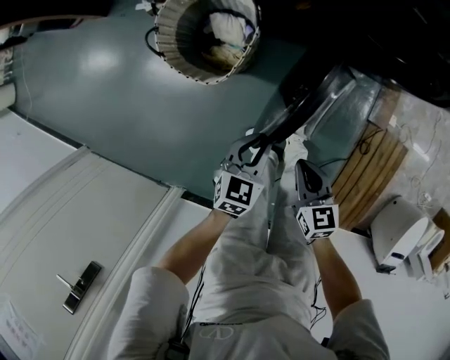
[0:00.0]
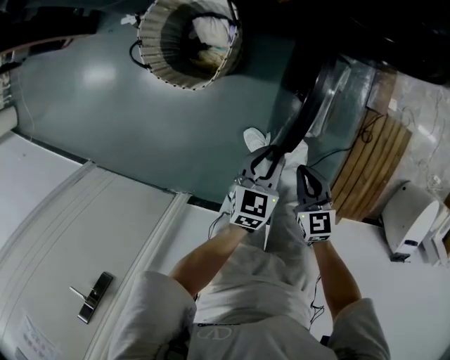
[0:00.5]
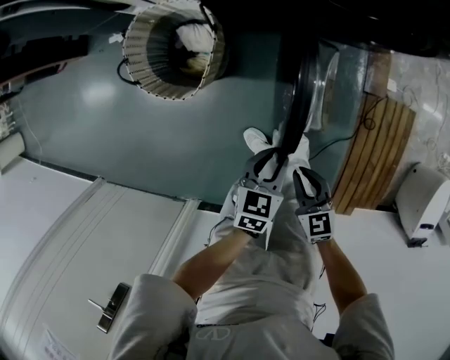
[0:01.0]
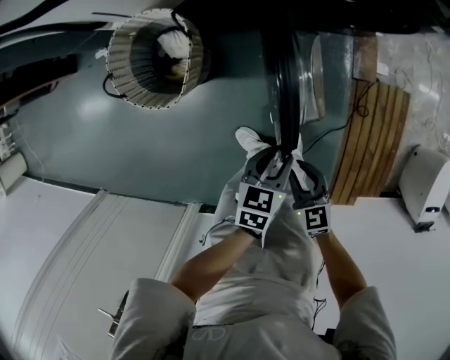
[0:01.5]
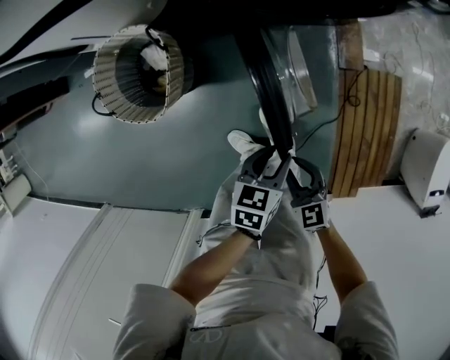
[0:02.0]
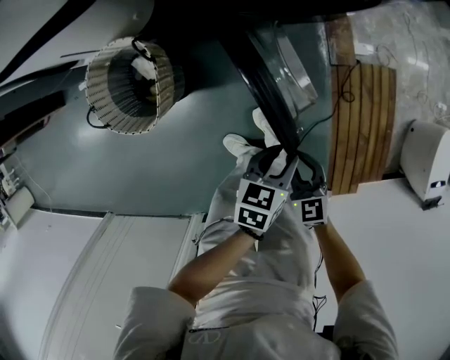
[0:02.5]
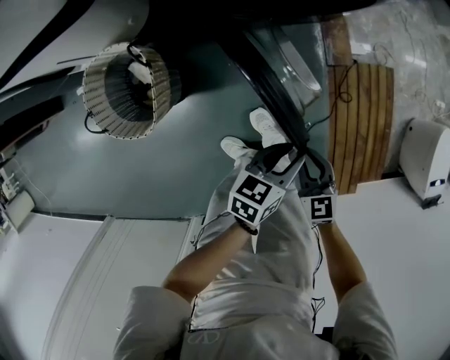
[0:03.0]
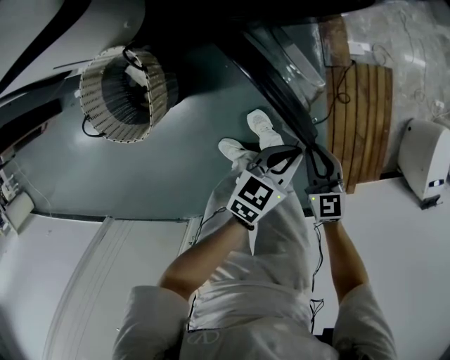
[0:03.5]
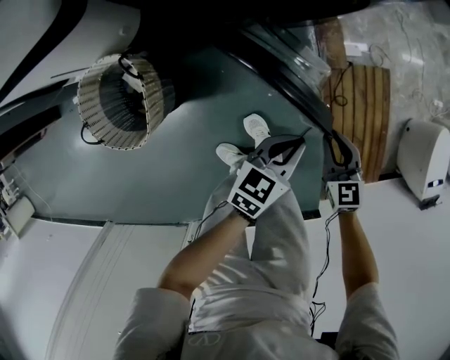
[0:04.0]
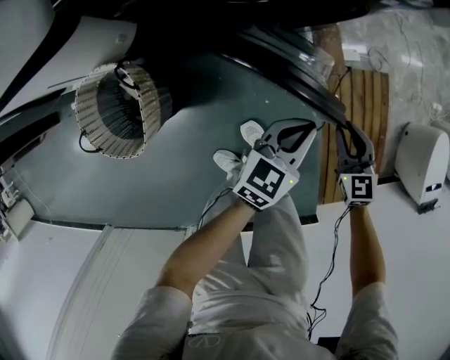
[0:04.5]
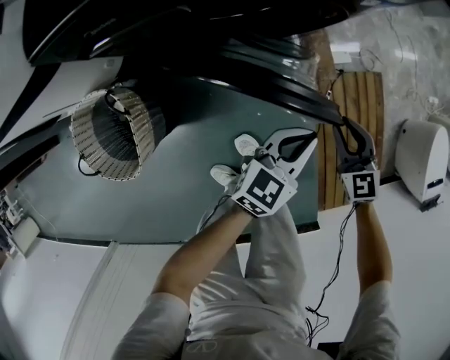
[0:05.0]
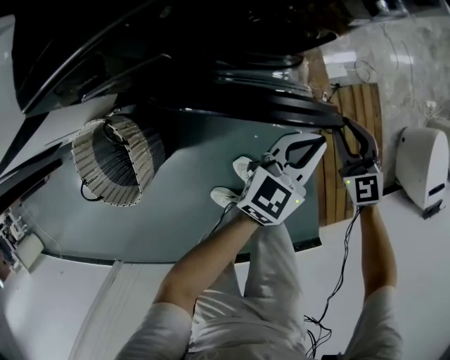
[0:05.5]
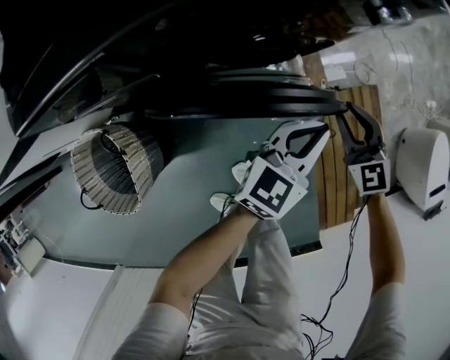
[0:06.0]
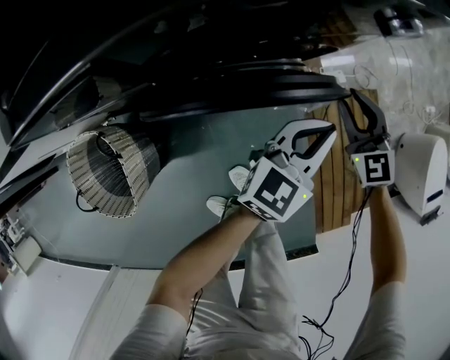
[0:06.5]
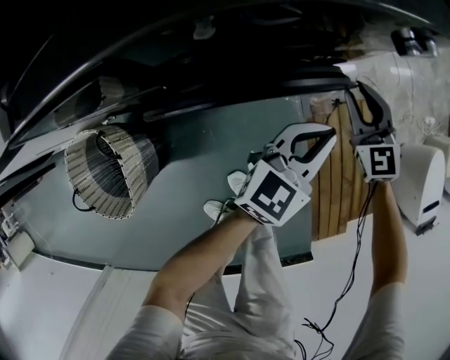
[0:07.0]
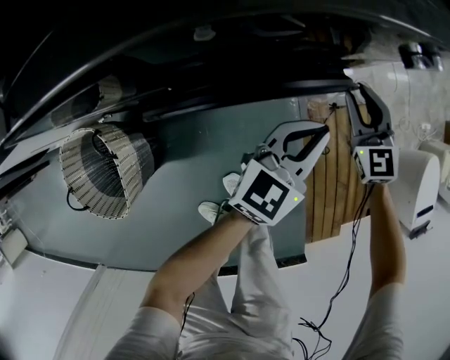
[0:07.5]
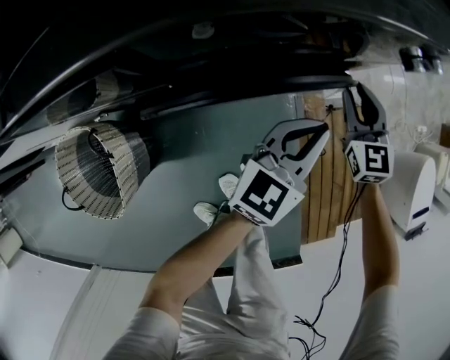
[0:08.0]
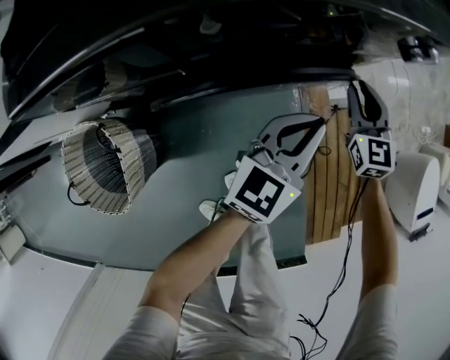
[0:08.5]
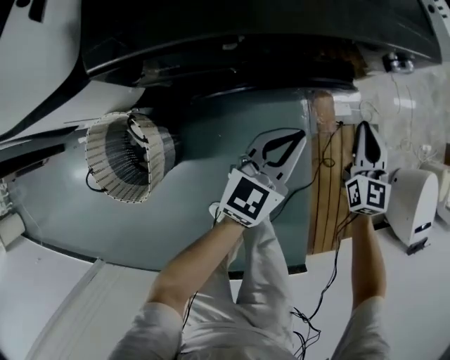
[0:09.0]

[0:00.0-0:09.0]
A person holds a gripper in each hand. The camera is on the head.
0:00.0 to 0:02.0: The right gripper travels to the right by some 10 cm, and opens up. The left gripper shifts roughly 20 cm to the right, and swivels approximately 30 degrees.
0:02.0 to 0:04.5: Both grippers move forward and to the right, about 25 cm. The right gripper swivels about 20 degrees. Meanwhile the left gripper changes its angle by about 40 degrees, and closes its fingers.
0:04.5 to 0:07.0: The two grippers go roughly 20 cm forward.
0:07.0 to 0:09.0: The right gripper moves upward and backward, roughly 10 cm, changes its angle by about 20 degrees, and closes its fingers. The left gripper travels to the left and upward by approximately 10 cm.

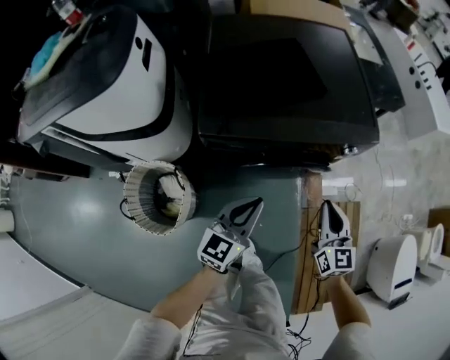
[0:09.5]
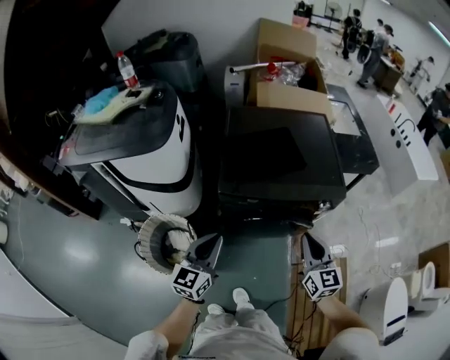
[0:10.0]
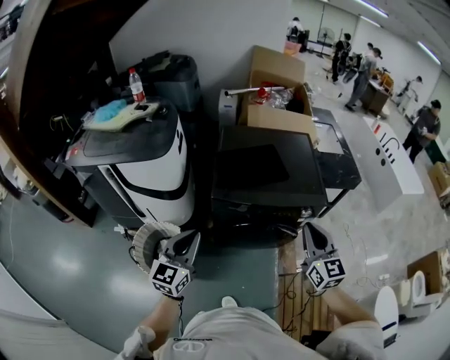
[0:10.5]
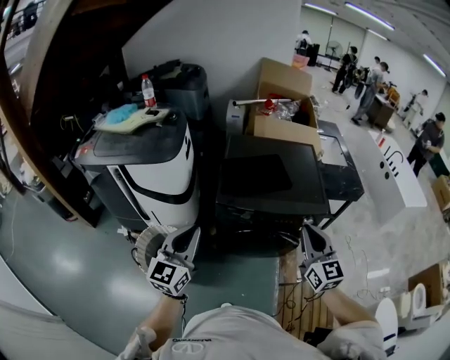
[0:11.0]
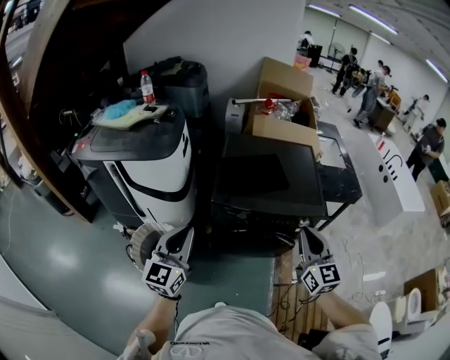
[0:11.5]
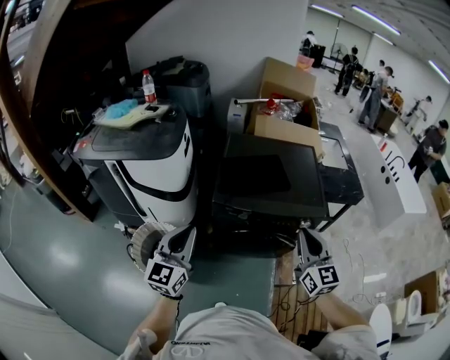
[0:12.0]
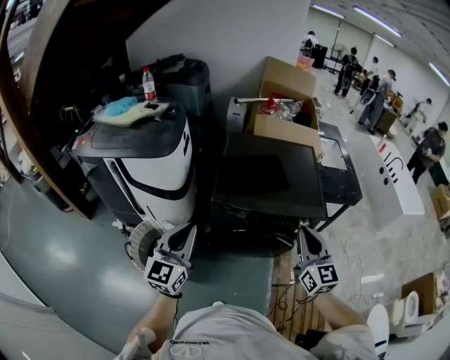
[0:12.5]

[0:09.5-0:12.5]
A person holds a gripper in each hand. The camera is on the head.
0:09.5 to 0:11.0: The left gripper is displaced upward and to the left by approximately 35 cm, and swivels roughly 30 degrees, while the right gripper travels upward by some 30 cm, and turns by about 20 degrees.
0:11.0 to 0:12.5: There are only small adjustments of the grippers.

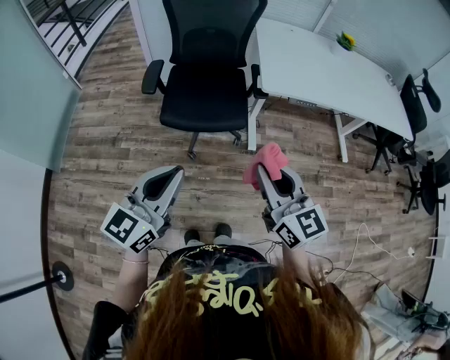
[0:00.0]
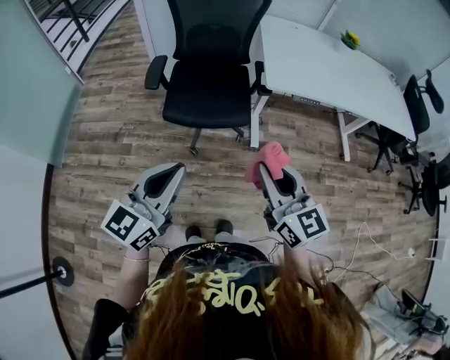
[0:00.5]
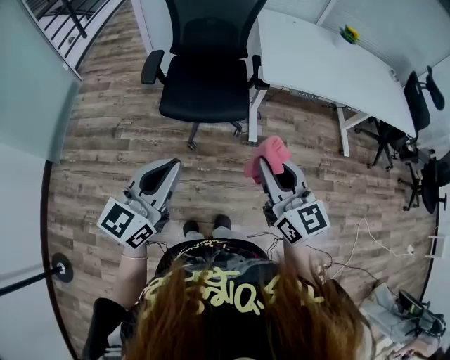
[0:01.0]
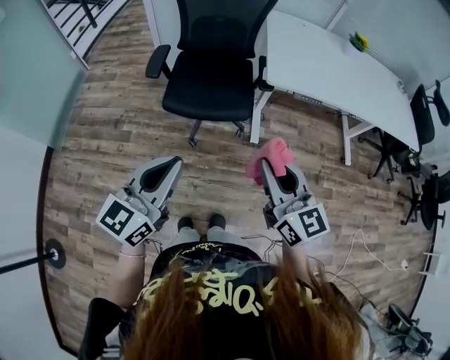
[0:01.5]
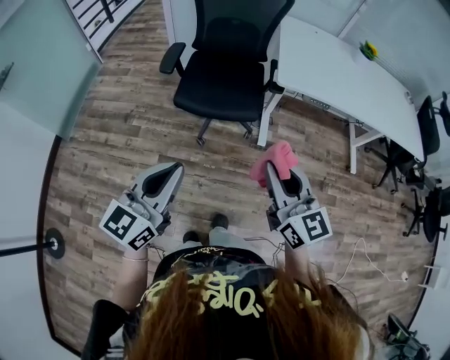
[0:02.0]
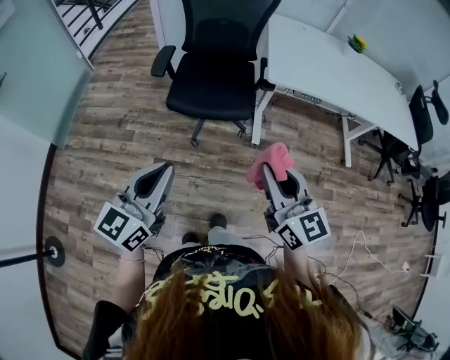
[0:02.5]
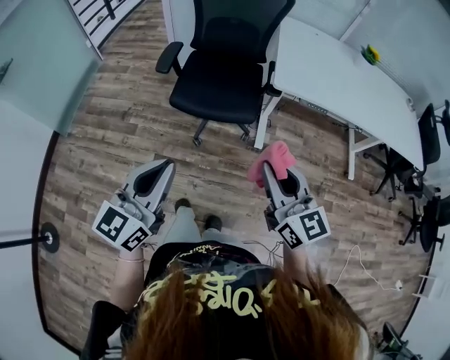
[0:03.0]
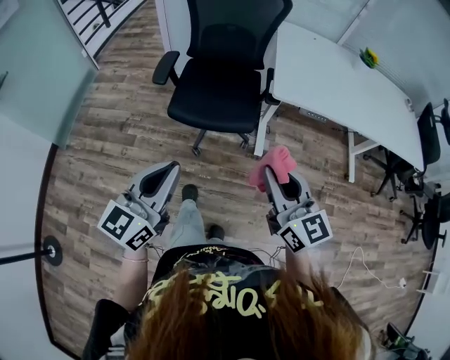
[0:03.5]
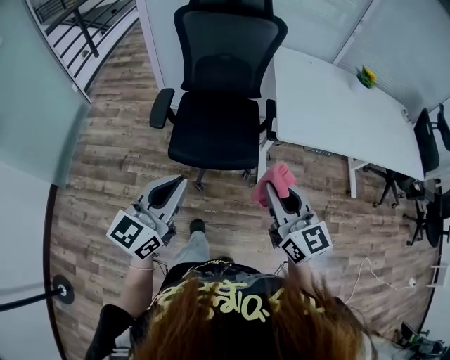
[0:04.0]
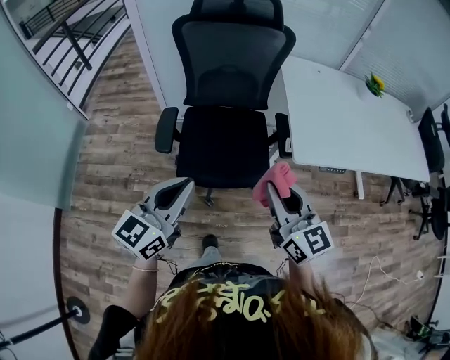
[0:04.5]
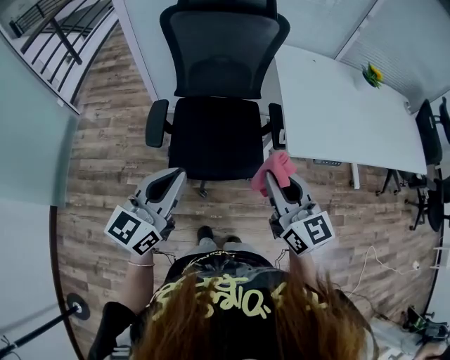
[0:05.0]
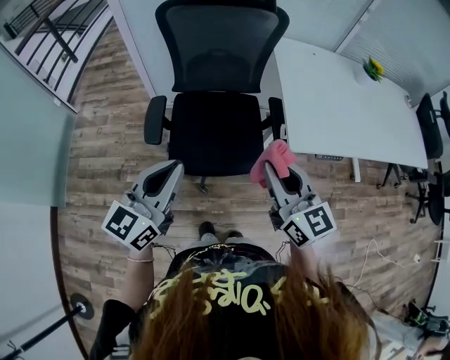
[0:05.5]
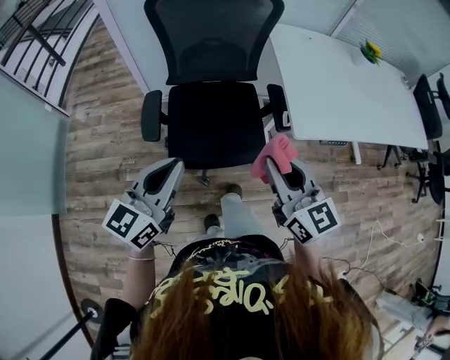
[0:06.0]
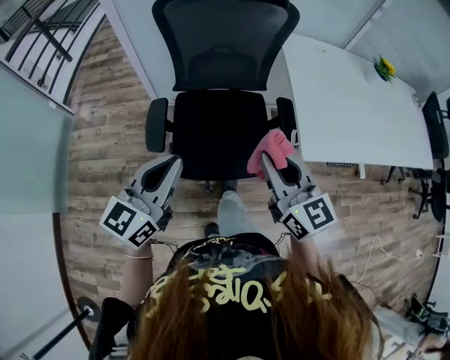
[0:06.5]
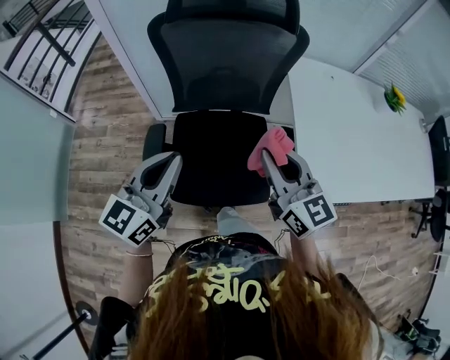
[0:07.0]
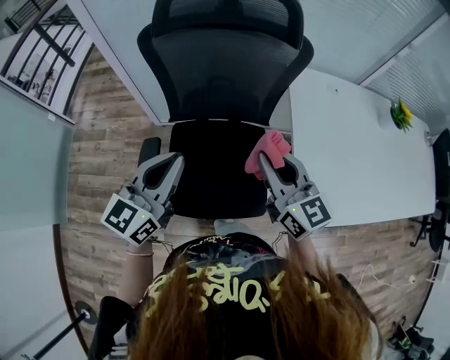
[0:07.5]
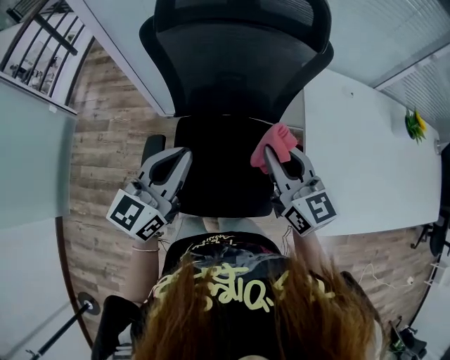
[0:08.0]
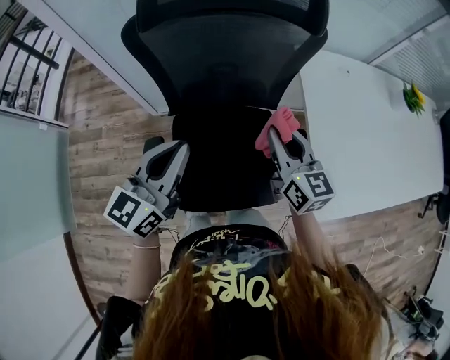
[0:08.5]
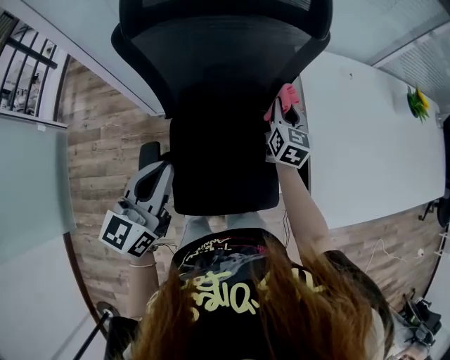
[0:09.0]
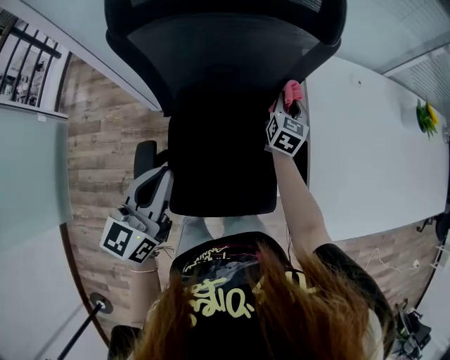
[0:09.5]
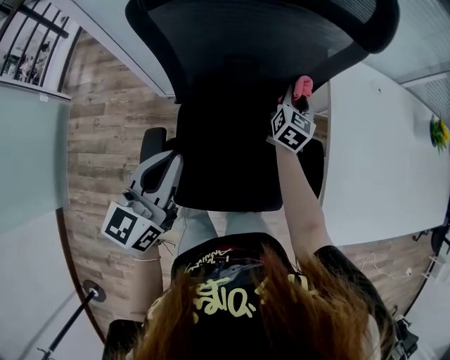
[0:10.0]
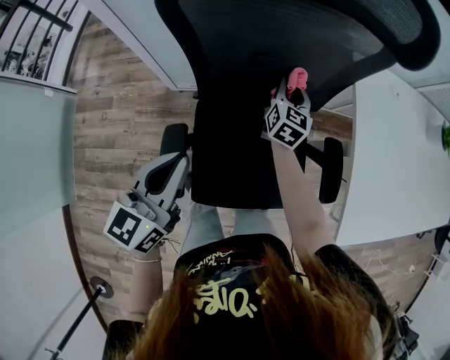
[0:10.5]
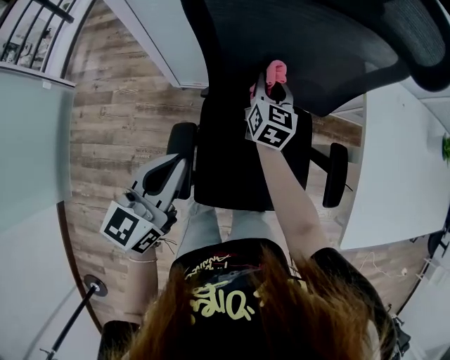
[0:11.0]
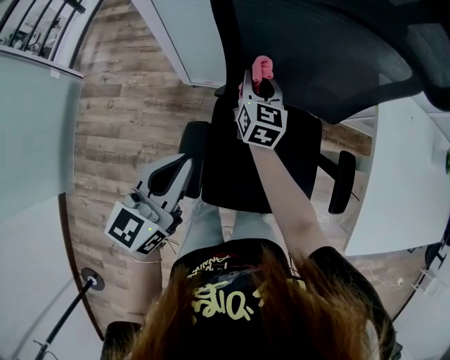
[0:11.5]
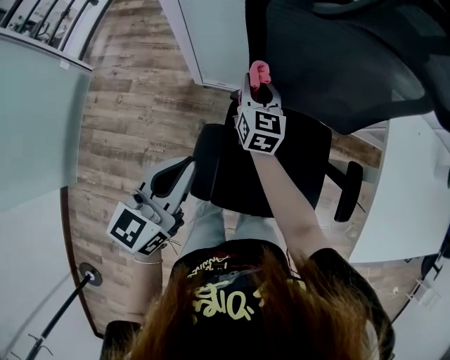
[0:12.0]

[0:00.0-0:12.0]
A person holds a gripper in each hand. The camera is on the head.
0:00.0 to 0:02.0: The left gripper ends up roughly 5 cm from where it was.
0:02.0 to 0:04.0: The two grippers go approximately 20 cm forward.
0:04.0 to 0:06.0: Both grippers move forward and to the left, roughly 15 cm.
0:06.0 to 0:08.0: The grippers both shift forward by some 30 cm.
0:08.0 to 0:10.0: The left gripper travels downward by approximately 5 cm. The right gripper goes about 30 cm forward and downward, and swivels approximately 40 degrees.
0:10.0 to 0:12.0: The right gripper travels to the left by roughly 35 cm, and changes its angle by roughly 30 degrees; the left gripper travels to the left by roughly 15 cm.

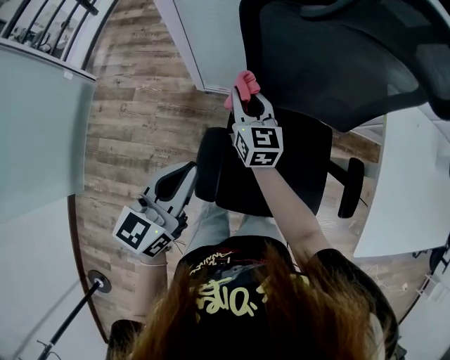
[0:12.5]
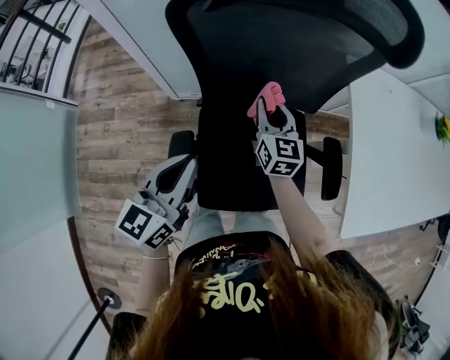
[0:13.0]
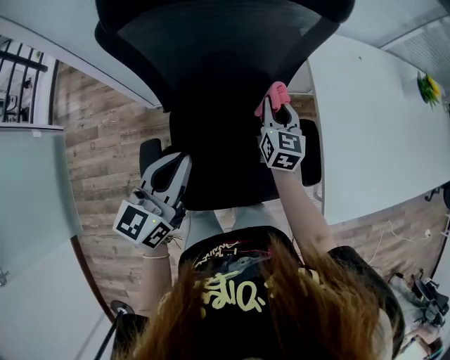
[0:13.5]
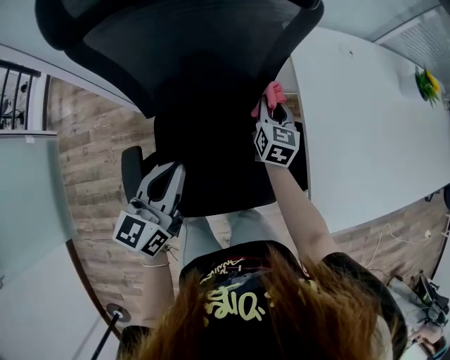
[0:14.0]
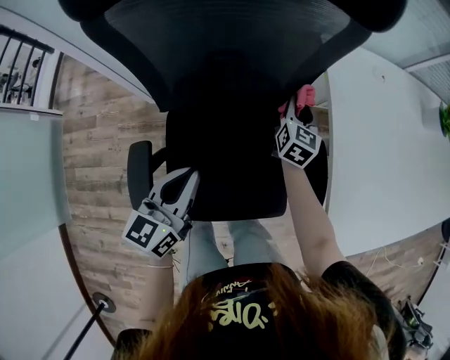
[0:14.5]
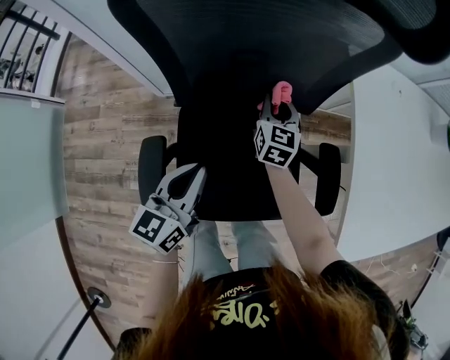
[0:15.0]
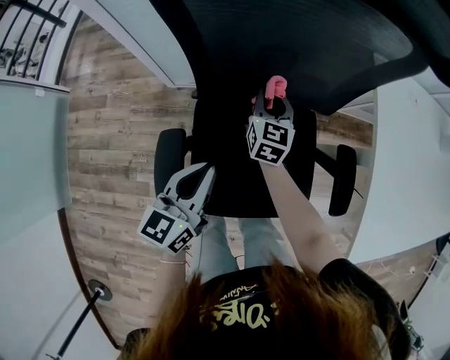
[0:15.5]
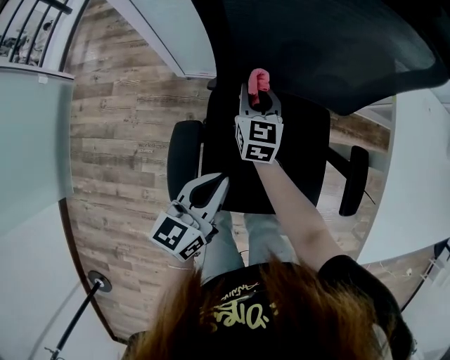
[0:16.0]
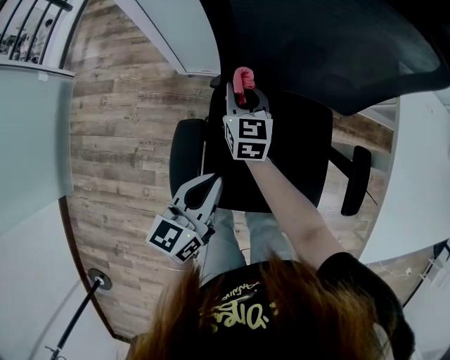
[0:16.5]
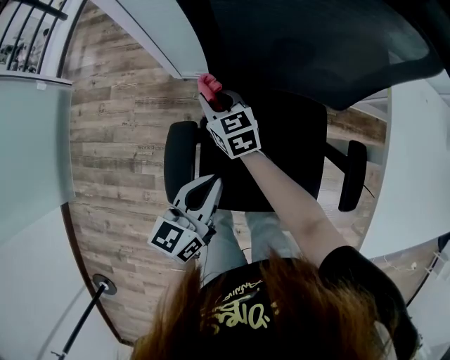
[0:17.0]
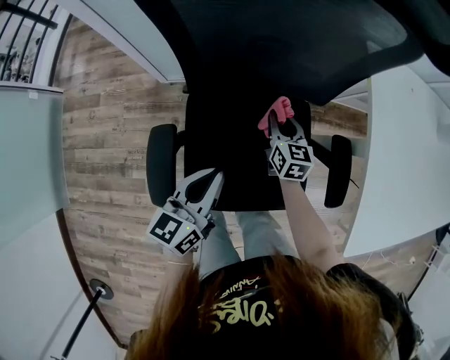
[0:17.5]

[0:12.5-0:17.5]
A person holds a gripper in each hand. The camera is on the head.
0:12.5 to 0:15.0: The left gripper shifts about 20 cm to the right, downward and forward. Meanwhile the right gripper heads to the right, covering about 30 cm, and changes its angle by roughly 30 degrees.
0:15.0 to 0:17.5: The right gripper travels backward and downward by some 10 cm, and reaches approximately 30 cm to the left, then returns.
